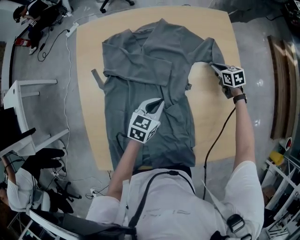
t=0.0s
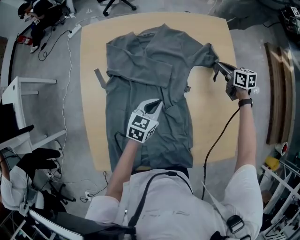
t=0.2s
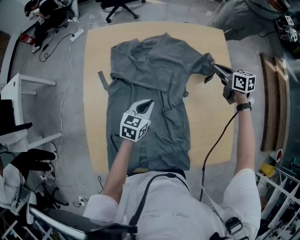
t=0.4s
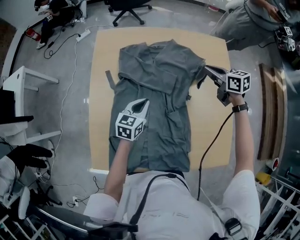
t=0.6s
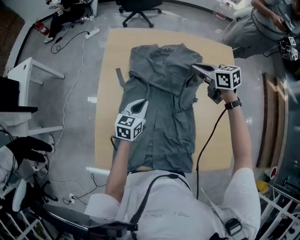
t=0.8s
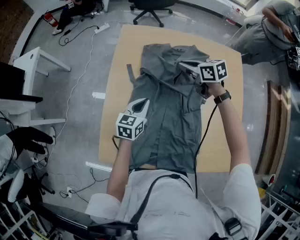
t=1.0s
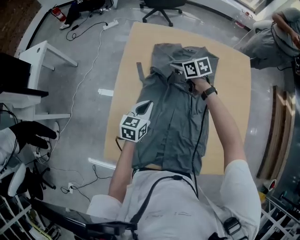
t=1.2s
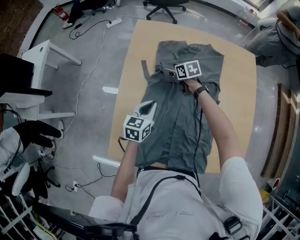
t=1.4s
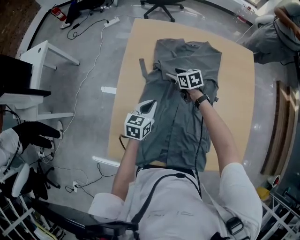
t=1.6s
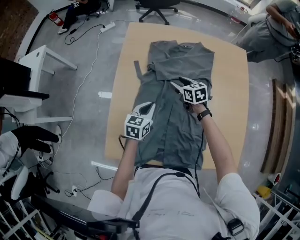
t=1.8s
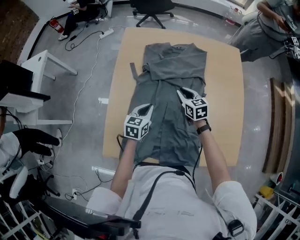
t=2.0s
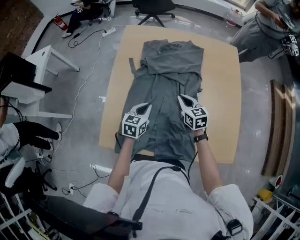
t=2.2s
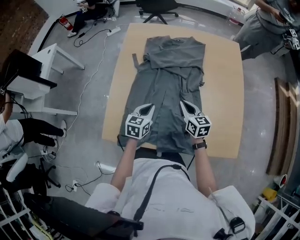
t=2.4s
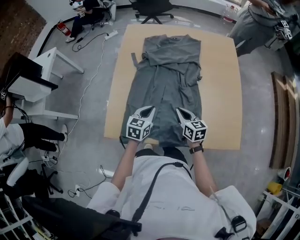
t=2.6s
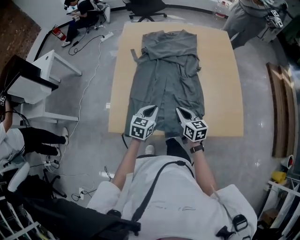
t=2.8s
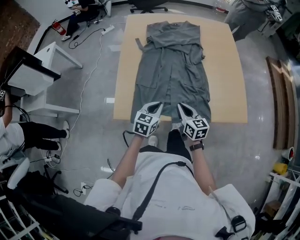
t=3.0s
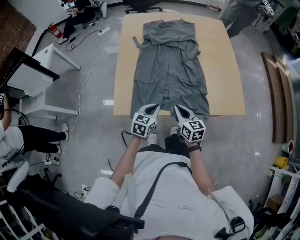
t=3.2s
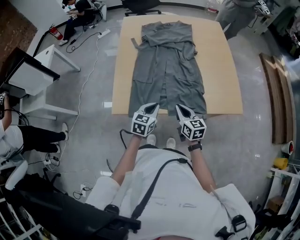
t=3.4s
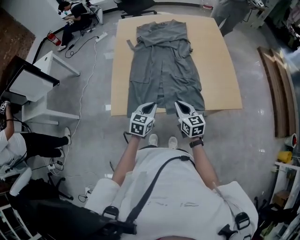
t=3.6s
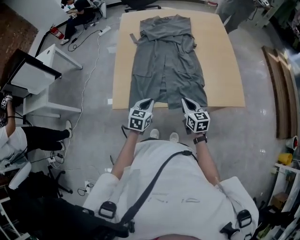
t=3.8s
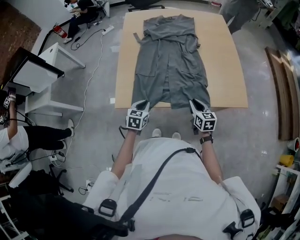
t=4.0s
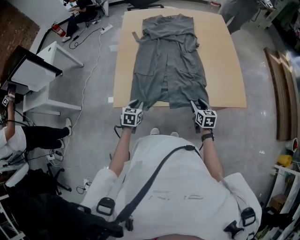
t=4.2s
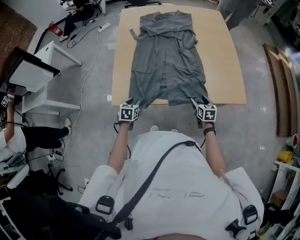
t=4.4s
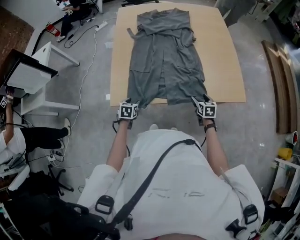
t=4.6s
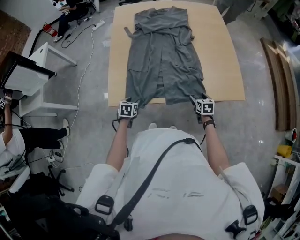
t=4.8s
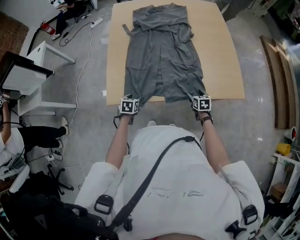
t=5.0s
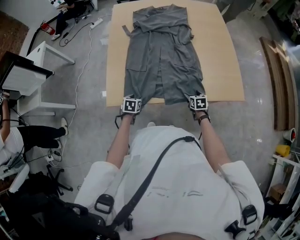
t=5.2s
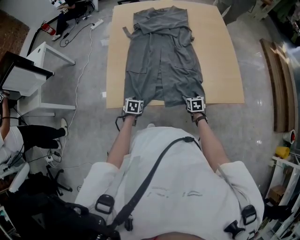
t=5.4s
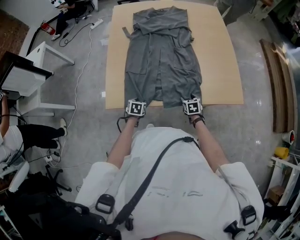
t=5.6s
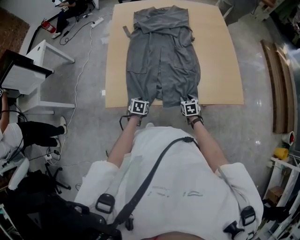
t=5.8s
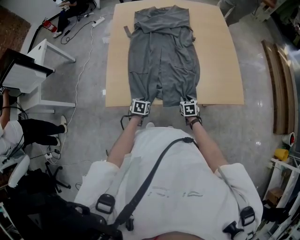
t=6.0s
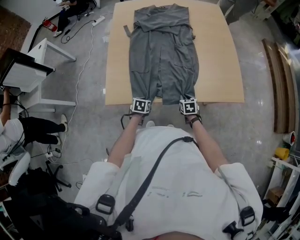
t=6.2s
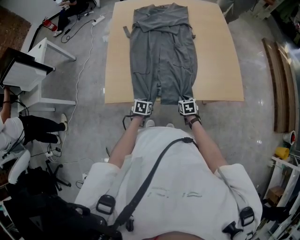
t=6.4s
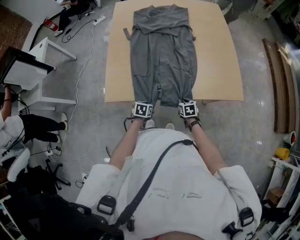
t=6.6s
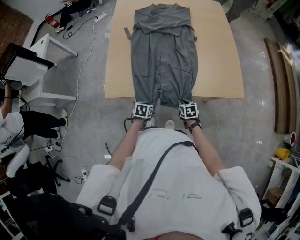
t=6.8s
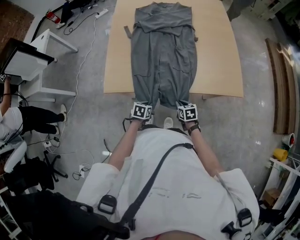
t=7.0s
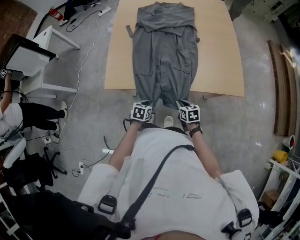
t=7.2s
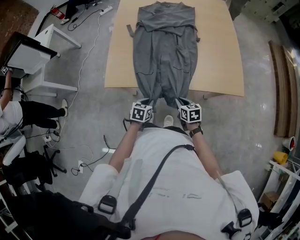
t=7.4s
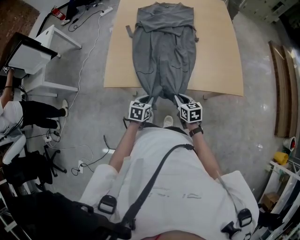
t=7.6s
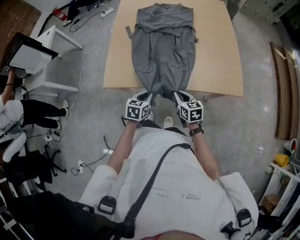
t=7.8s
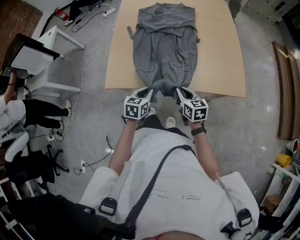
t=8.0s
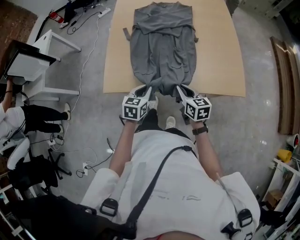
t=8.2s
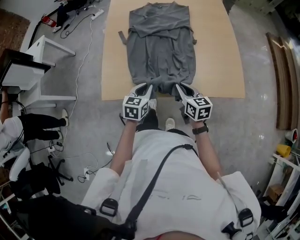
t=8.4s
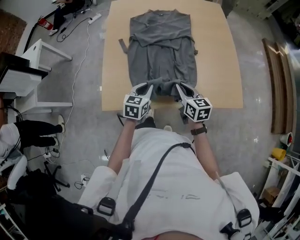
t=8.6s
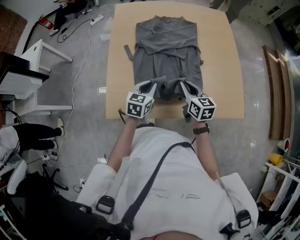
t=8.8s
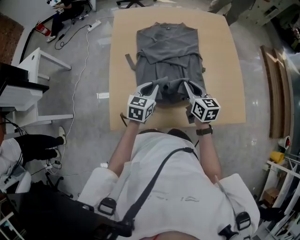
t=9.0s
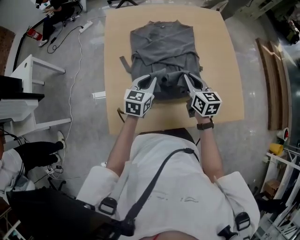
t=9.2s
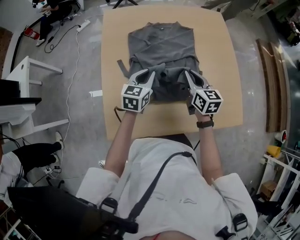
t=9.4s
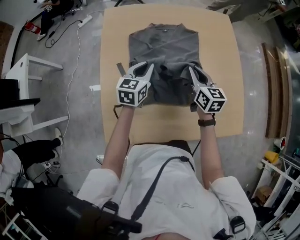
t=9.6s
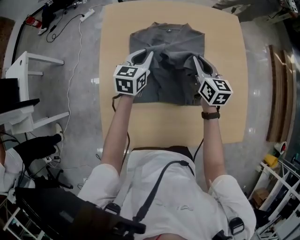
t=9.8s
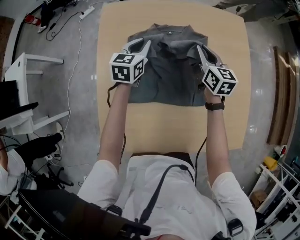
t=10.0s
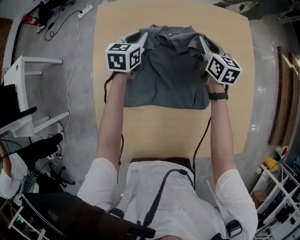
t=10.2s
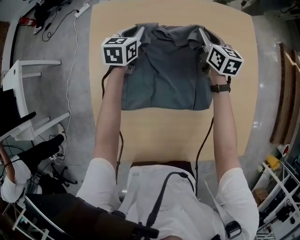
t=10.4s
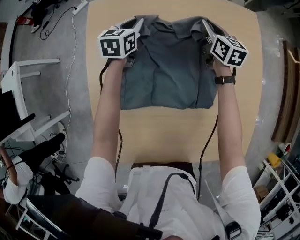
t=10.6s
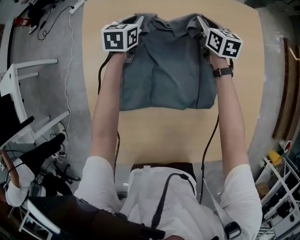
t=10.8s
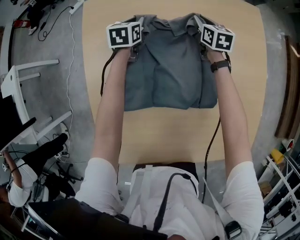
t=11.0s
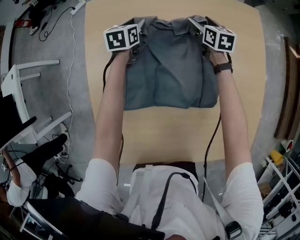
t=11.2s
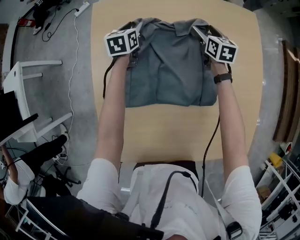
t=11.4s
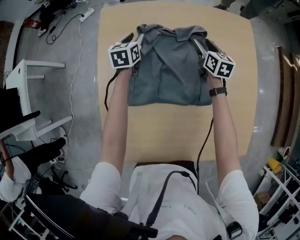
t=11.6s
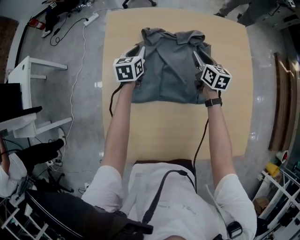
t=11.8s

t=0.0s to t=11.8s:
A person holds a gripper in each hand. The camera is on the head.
t=0.0s to t=1.4s: The left gripper moves approximately 25 cm, and rotates approximately 30 degrees; the right gripper moves about 25 cm upward and comes back, and opens its fingers.
t=1.4s to t=3.0s: The right gripper moves backward, some 50 cm, changes its angle by some 30 degrees, and closes. The left gripper goes some 30 cm backward.
t=3.0s to t=4.4s: The left gripper shifts about 20 cm to the left, downward and backward, swivels approximately 20 degrees, and opens; the right gripper is displaced to the right and downward by about 20 cm, rotates approximately 20 degrees, and opens up.
t=4.4s to t=6.0s: The right gripper travels downward by roughly 10 cm, and closes up; the left gripper goes about 15 cm to the right and downward.
t=6.0s to t=7.4s: The left gripper heads backward, upward and to the right, covering about 15 cm. Meanwhile the right gripper goes approximately 15 cm backward and upward, and rotates approximately 20 degrees.
t=7.4s to t=8.8s: The two grippers go roughly 30 cm forward and upward. The right gripper turns by some 20 degrees; the left gripper turns by some 20 degrees.
t=8.8s to t=10.4s: Both grippers are carried forward, roughly 50 cm.
t=10.4s to t=11.8s: The two grippers go about 10 cm backward. The right gripper opens, then closes again. The left gripper opens and closes again.

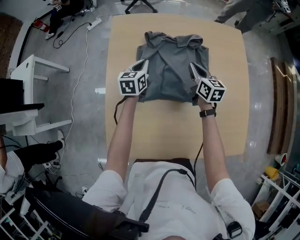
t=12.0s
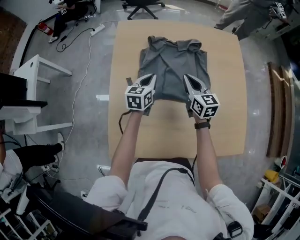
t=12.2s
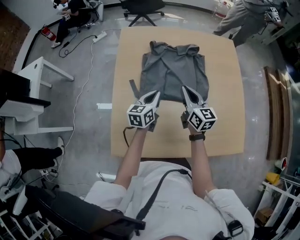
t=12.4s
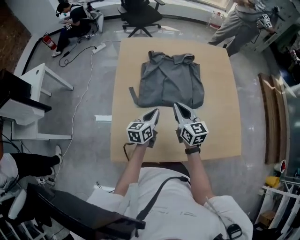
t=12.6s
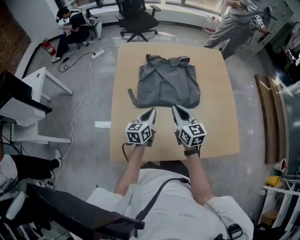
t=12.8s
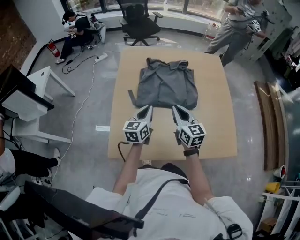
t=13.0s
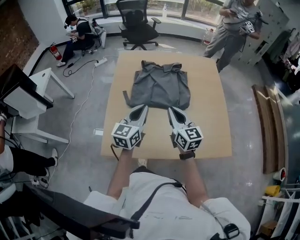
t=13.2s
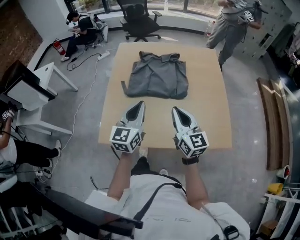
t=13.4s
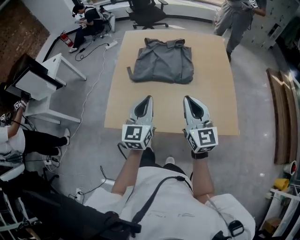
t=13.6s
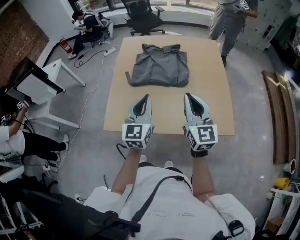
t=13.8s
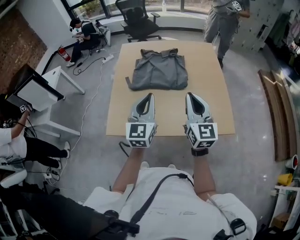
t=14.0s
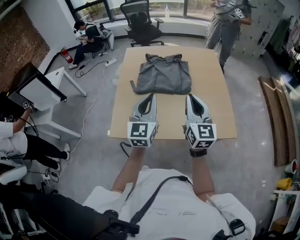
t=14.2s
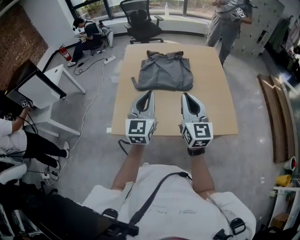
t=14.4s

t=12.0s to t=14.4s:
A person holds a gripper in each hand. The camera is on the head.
t=12.0s to t=13.2s: Both grippers move backward and upward, roughly 35 cm. The right gripper swivels approximately 20 degrees. The left gripper changes its angle by about 20 degrees.
t=13.2s to t=14.4s: Both grippers move backward and upward, some 15 cm. The left gripper changes its angle by roughly 20 degrees.

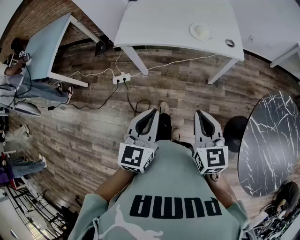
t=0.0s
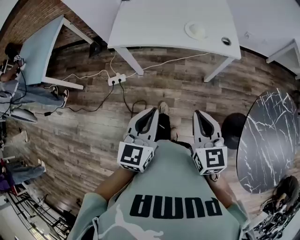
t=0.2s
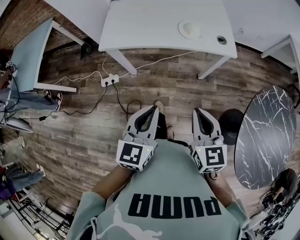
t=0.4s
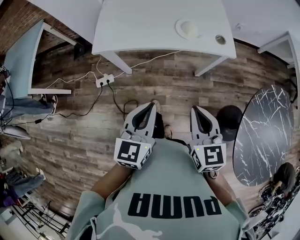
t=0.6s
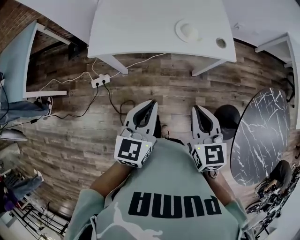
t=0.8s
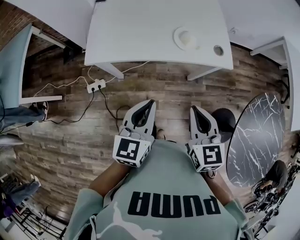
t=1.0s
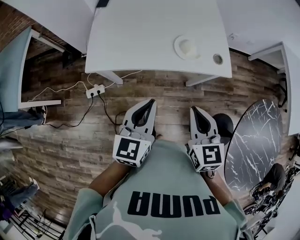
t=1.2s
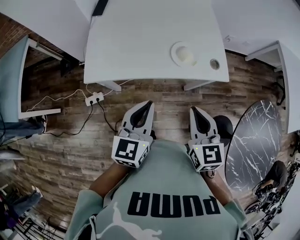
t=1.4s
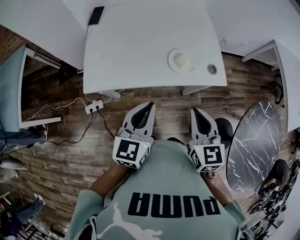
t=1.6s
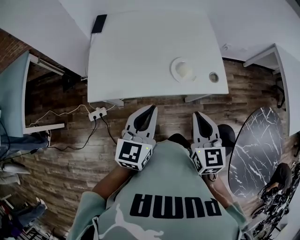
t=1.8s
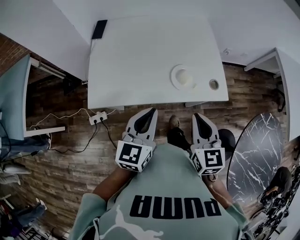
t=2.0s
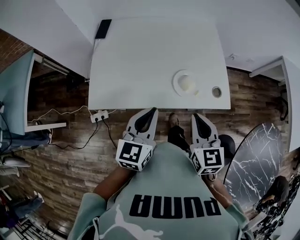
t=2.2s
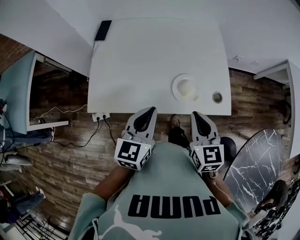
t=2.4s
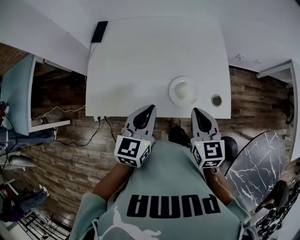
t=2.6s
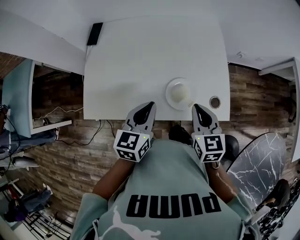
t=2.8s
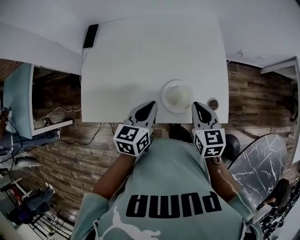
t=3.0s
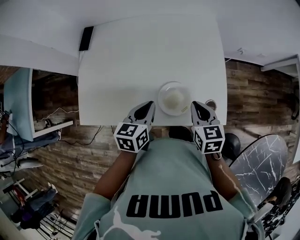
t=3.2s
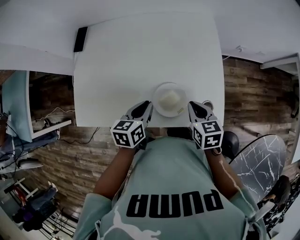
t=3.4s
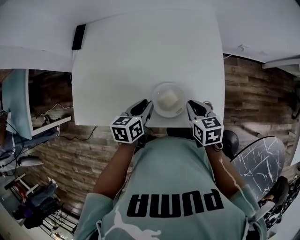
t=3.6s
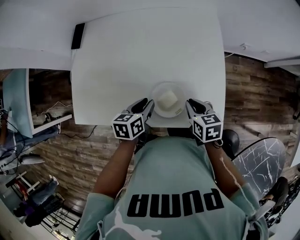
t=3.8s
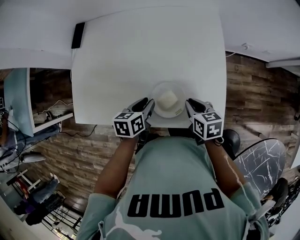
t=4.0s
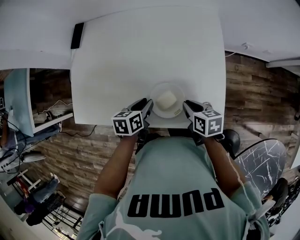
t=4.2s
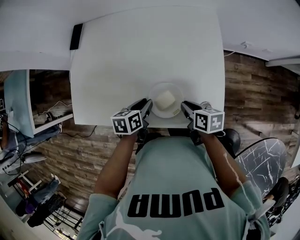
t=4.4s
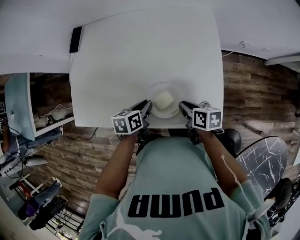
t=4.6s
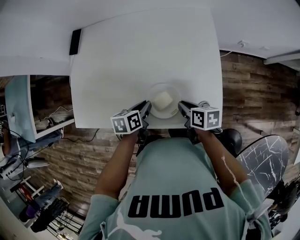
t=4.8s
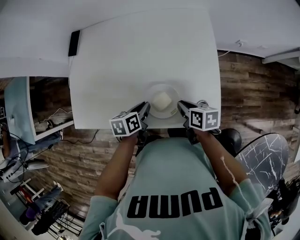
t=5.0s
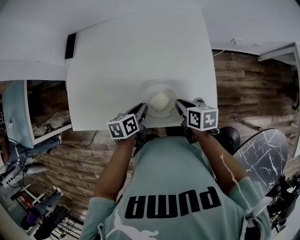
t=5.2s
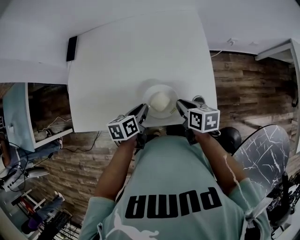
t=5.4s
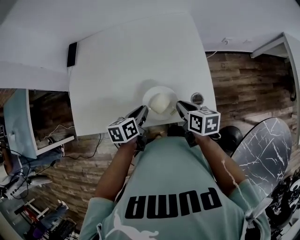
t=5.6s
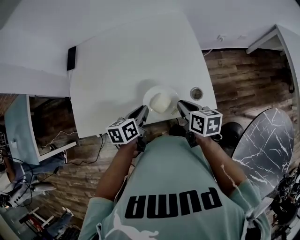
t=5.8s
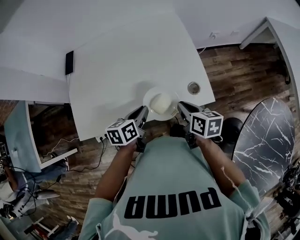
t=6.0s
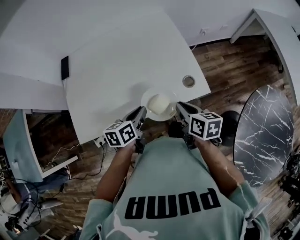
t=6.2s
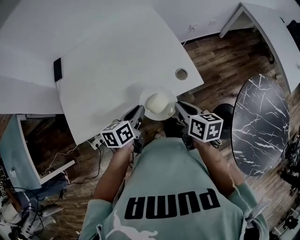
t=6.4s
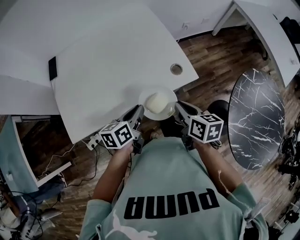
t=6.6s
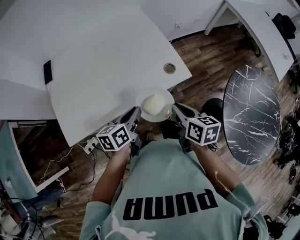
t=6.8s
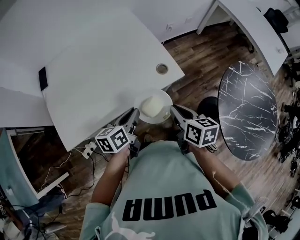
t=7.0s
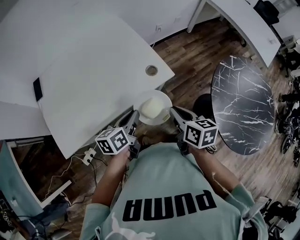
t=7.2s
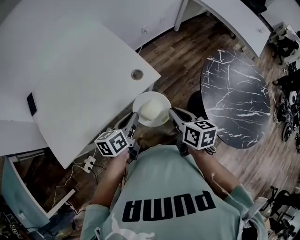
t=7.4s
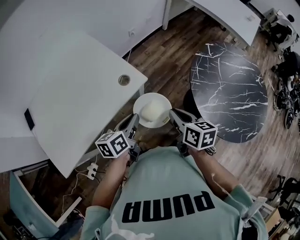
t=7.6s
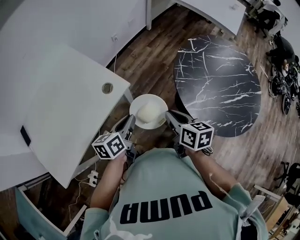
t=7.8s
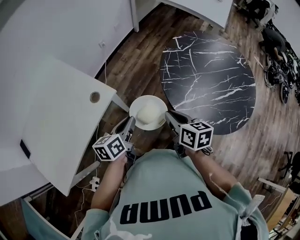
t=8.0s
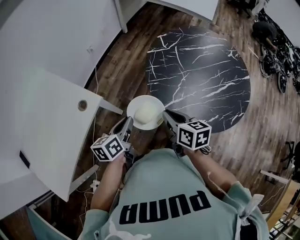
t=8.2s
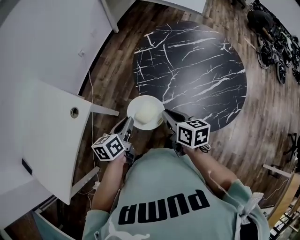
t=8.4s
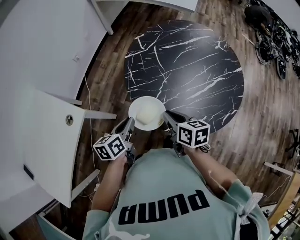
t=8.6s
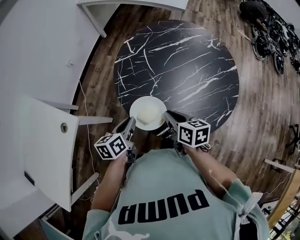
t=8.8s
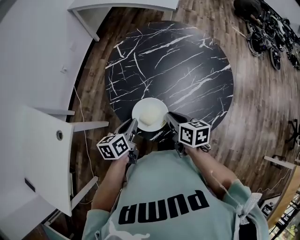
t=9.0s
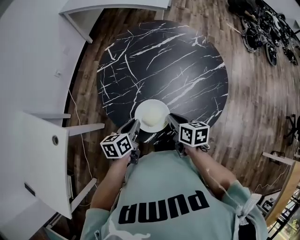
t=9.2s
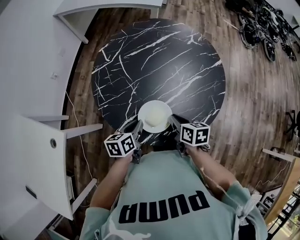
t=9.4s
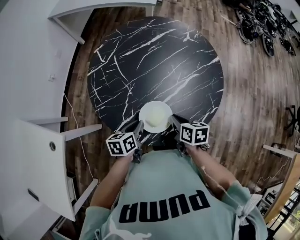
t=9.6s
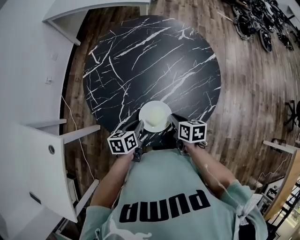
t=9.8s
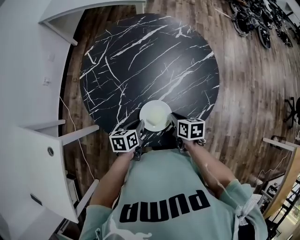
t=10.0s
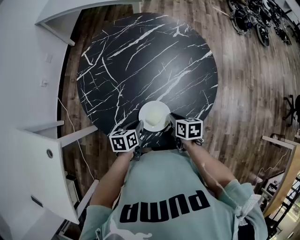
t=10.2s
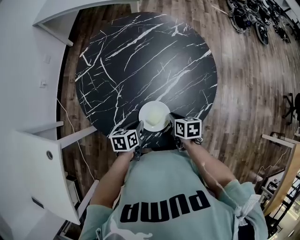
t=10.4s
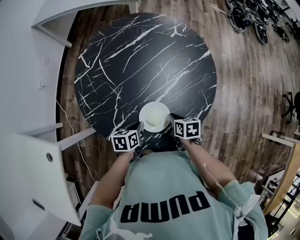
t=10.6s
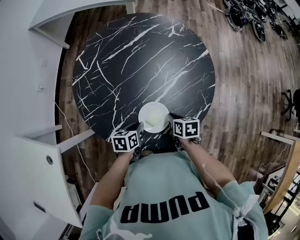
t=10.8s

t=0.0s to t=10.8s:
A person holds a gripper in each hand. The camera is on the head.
t=0.0s to t=1.6s: The two grippers go some 25 cm forward.
t=1.6s to t=3.0s: Both grippers travel together forward, some 20 cm.
t=3.0s to t=4.6s: Both grippers move downward, roughly 15 cm. The right gripper changes its angle by roughly 40 degrees. The left gripper turns by some 30 degrees.
t=4.6s to t=6.2s: The left gripper travels upward and backward by about 15 cm, and changes its angle by approximately 20 degrees; the right gripper travels backward and upward by about 15 cm, and turns by some 30 degrees.
t=6.2s to t=7.8s: The right gripper shifts by roughly 30 cm, and turns by roughly 30 degrees. The left gripper ends up some 30 cm from where it was, and rotates roughly 30 degrees.
t=7.8s to t=9.2s: The grippers both shift to the right by some 40 cm. The right gripper changes its angle by some 20 degrees, while the left gripper changes its angle by roughly 30 degrees.
t=9.2s to t=10.8s: Both grippers travel together downward and to the right, some 15 cm. The left gripper turns by about 20 degrees.
